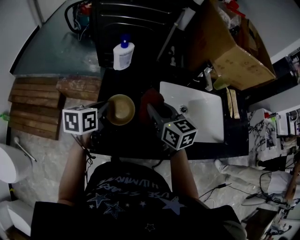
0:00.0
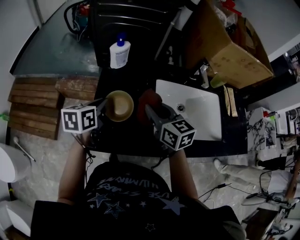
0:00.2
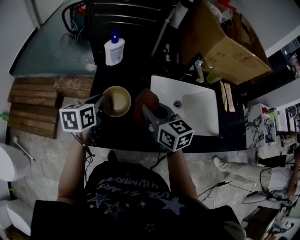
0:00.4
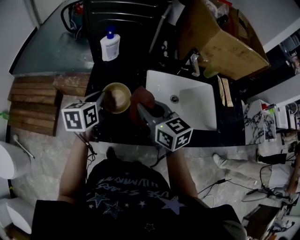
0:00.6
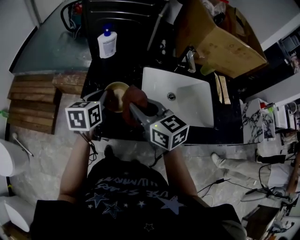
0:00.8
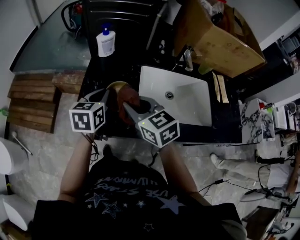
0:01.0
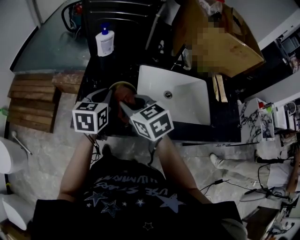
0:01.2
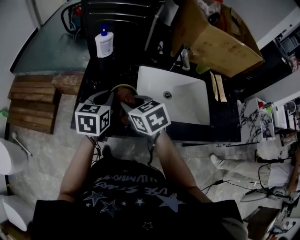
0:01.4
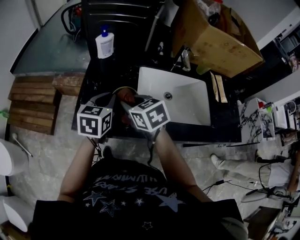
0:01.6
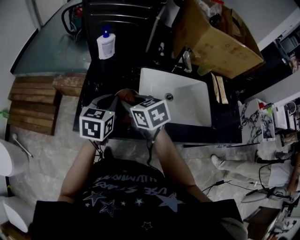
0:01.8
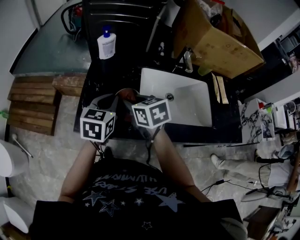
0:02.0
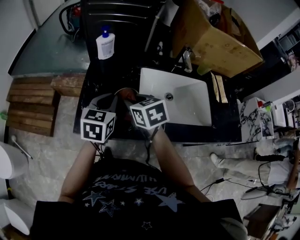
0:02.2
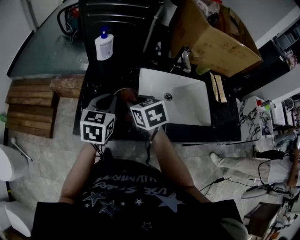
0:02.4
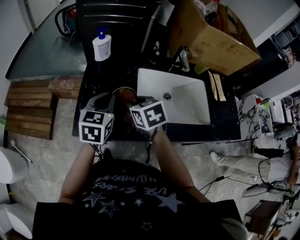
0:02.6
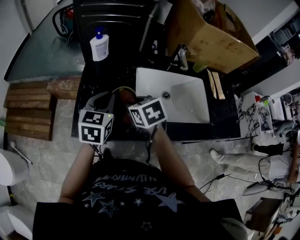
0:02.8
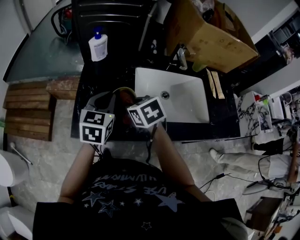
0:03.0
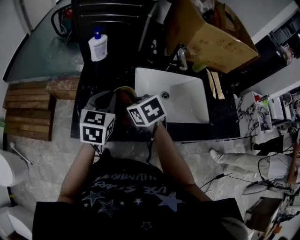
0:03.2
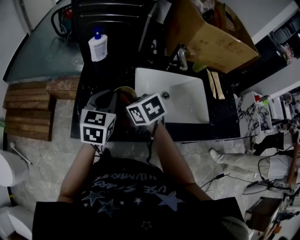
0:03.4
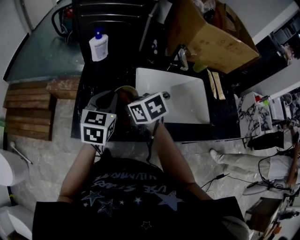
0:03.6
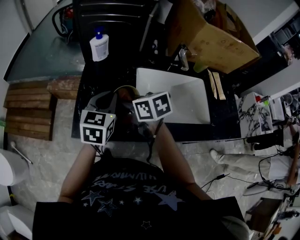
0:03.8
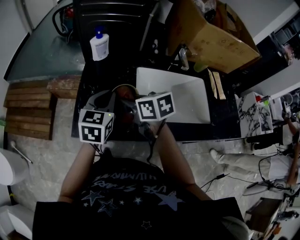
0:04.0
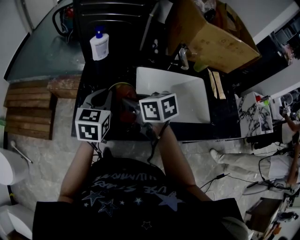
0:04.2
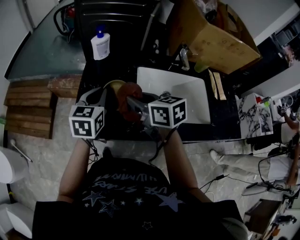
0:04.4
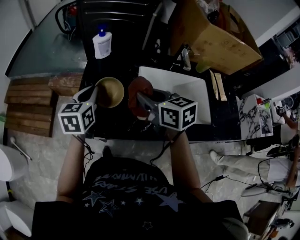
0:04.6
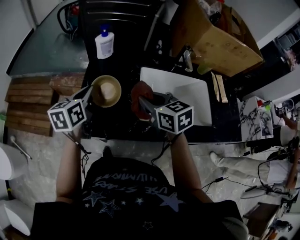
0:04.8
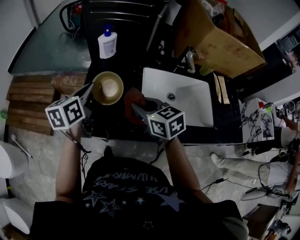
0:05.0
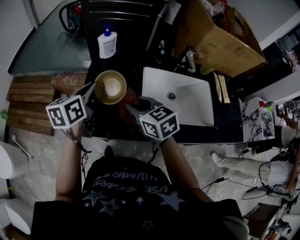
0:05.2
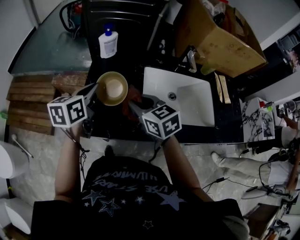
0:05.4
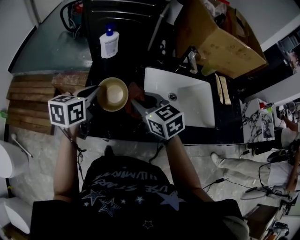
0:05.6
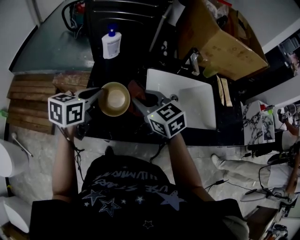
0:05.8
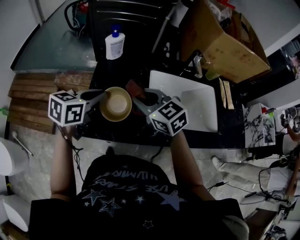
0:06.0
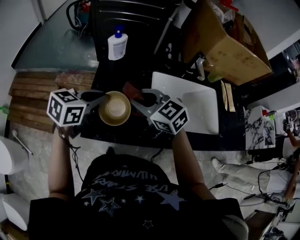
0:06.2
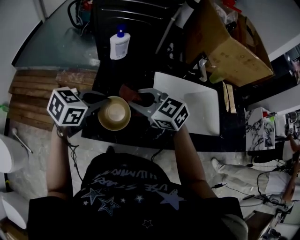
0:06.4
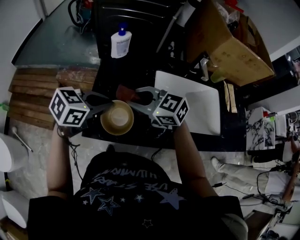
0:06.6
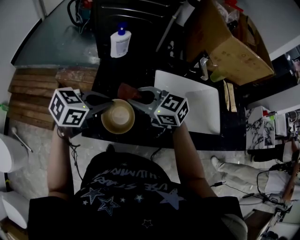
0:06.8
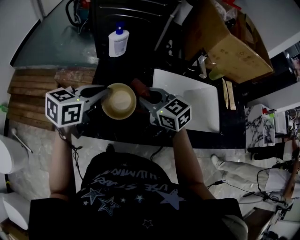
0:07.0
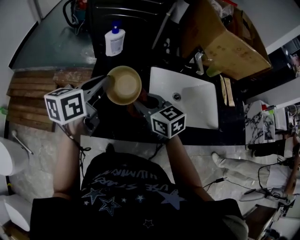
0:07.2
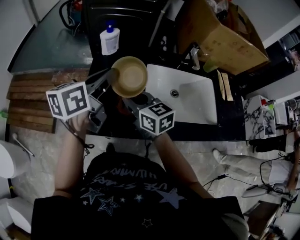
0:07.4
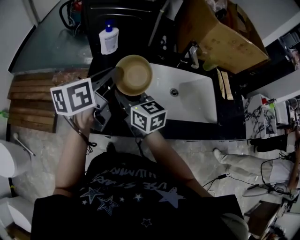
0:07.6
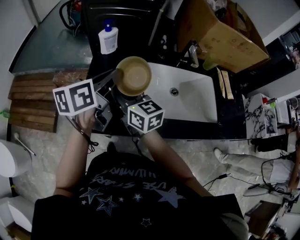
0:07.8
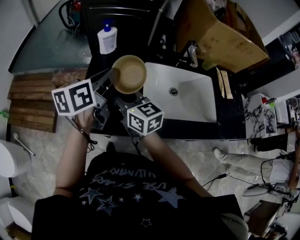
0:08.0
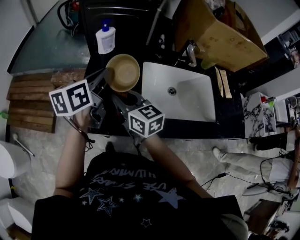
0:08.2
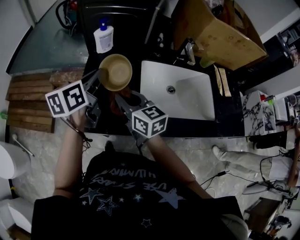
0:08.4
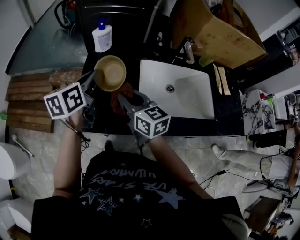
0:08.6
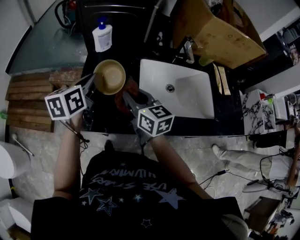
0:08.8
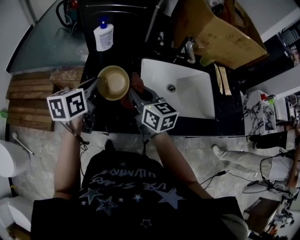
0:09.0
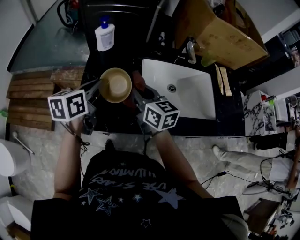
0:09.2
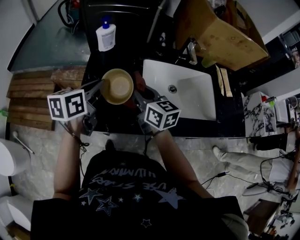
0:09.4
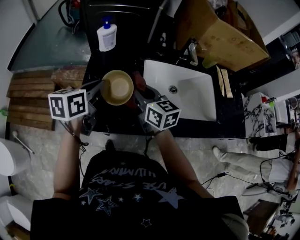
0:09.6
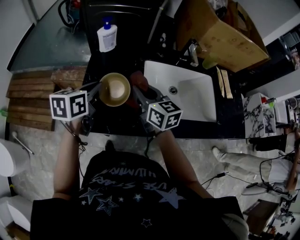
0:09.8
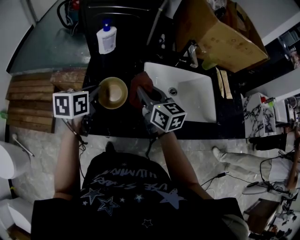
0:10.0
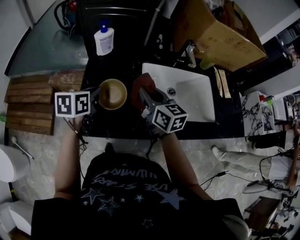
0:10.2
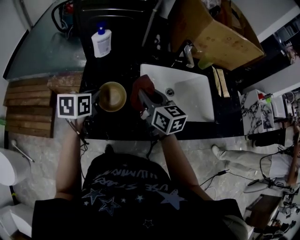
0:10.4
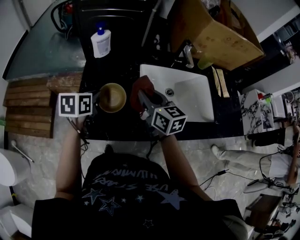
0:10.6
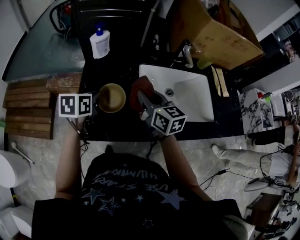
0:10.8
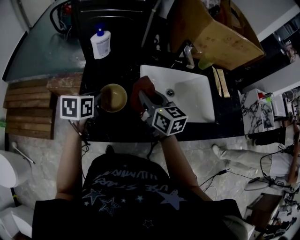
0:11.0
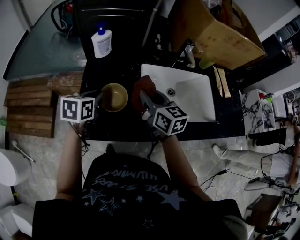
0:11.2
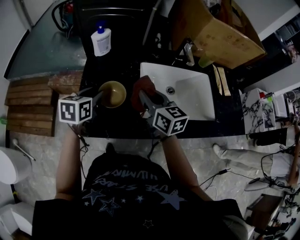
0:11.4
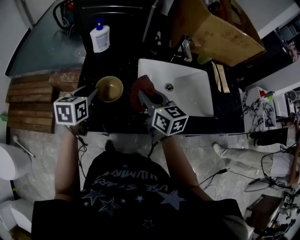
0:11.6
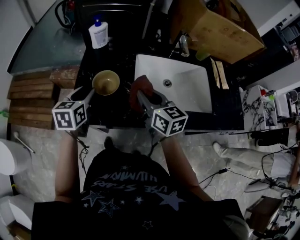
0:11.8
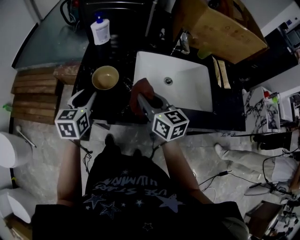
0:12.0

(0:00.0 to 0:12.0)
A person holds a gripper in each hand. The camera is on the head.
0:00.0 - 0:01.6: The right gripper moves backward, roughly 10 cm, and rotates about 20 degrees. Meanwhile the left gripper heads to the right and backward, covering some 15 cm, and changes its angle by roughly 20 degrees.
0:01.6 - 0:03.0: There are only small adjustments of the grippers.
0:03.0 - 0:04.4: The right gripper is displaced upward by approximately 10 cm, and turns by about 30 degrees.
0:04.4 - 0:06.0: The left gripper turns by roughly 30 degrees. Meanwhile the right gripper changes its angle by approximately 30 degrees.
0:06.0 - 0:07.6: The left gripper goes about 10 cm upward, and turns by approximately 30 degrees, while the right gripper turns by about 30 degrees.
0:07.6 - 0:09.0: The right gripper heads to the right, covering approximately 5 cm. Meanwhile the left gripper shifts approximately 10 cm downward.
0:09.0 - 0:10.4: The left gripper moves downward, some 5 cm.
0:10.4 - 0:12.0: Both grippers travel together backward, some 10 cm. The left gripper turns by roughly 20 degrees, and opens.

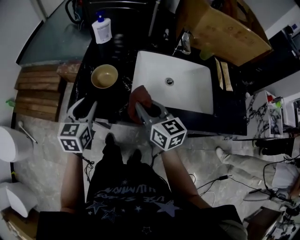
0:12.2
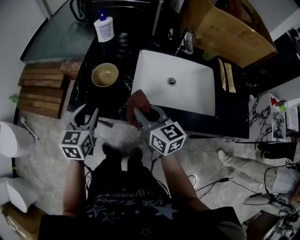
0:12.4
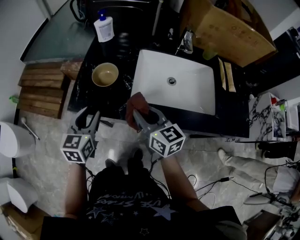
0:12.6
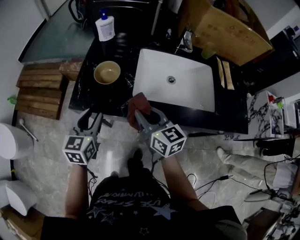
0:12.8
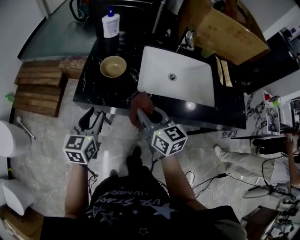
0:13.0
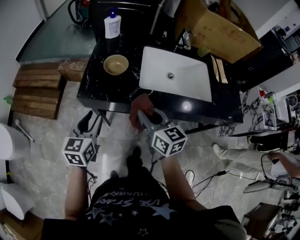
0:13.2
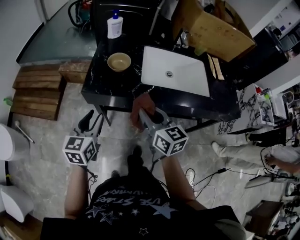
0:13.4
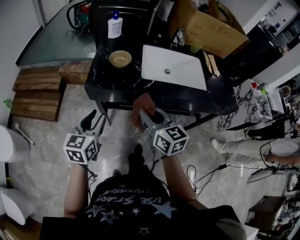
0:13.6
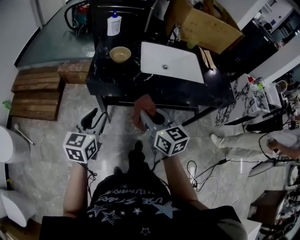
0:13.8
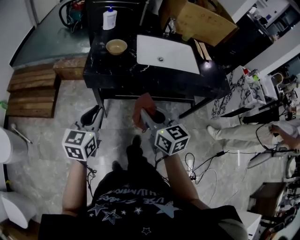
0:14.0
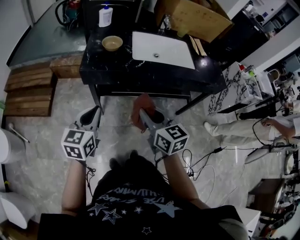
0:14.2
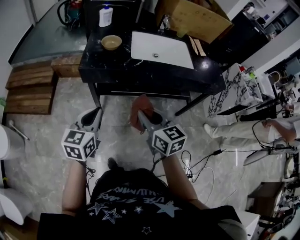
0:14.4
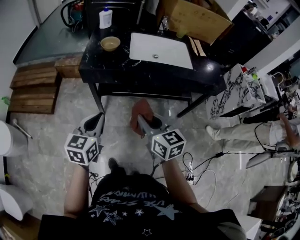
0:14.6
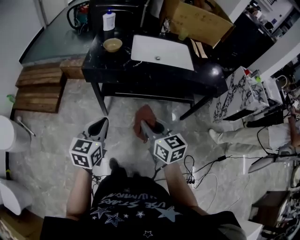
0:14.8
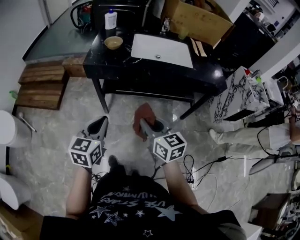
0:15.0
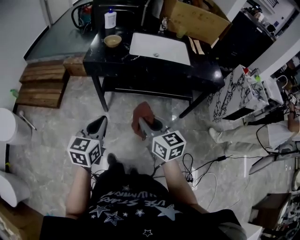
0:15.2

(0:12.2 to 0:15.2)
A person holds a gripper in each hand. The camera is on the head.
0:12.2 - 0:13.8: The right gripper moves backward and to the left, roughly 25 cm, while the left gripper travels backward by approximately 25 cm.
0:13.8 - 0:15.2: Both grippers travel together backward and to the right, roughly 20 cm. The left gripper closes up.

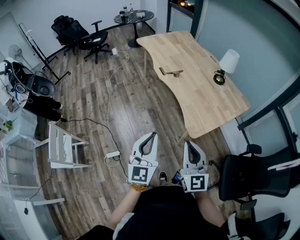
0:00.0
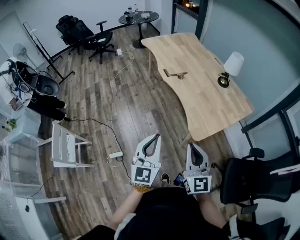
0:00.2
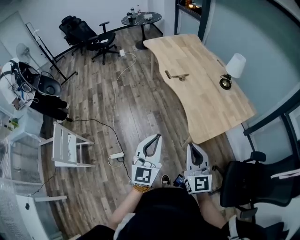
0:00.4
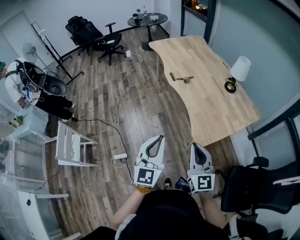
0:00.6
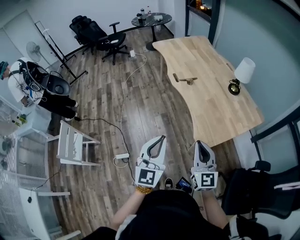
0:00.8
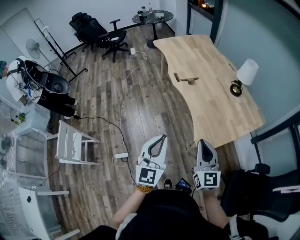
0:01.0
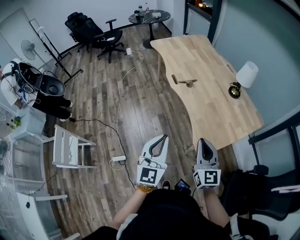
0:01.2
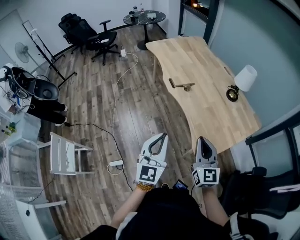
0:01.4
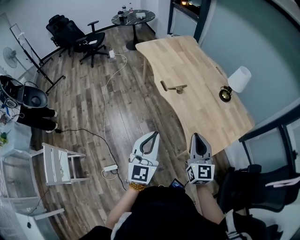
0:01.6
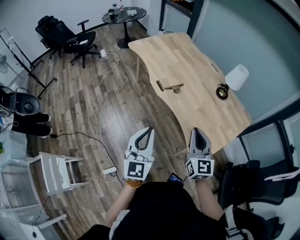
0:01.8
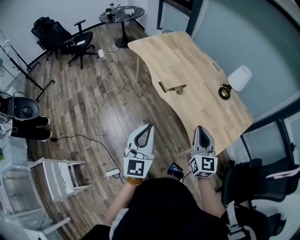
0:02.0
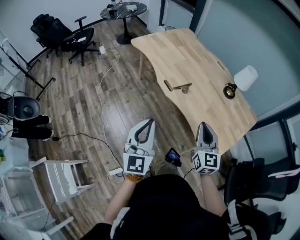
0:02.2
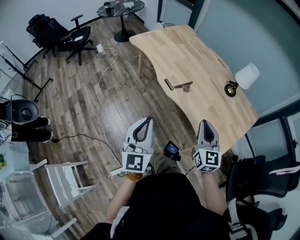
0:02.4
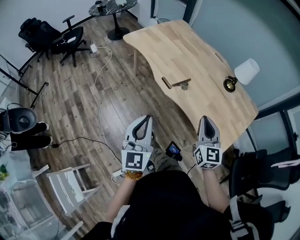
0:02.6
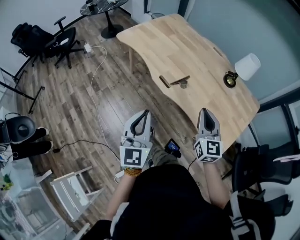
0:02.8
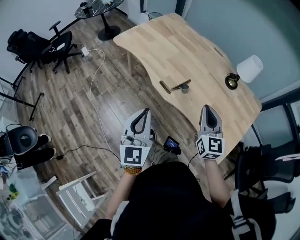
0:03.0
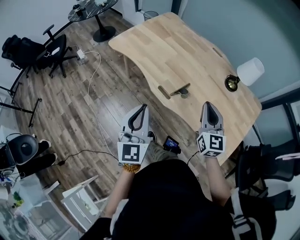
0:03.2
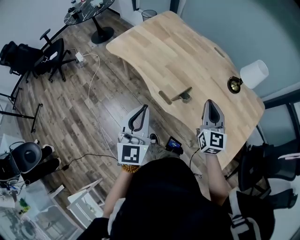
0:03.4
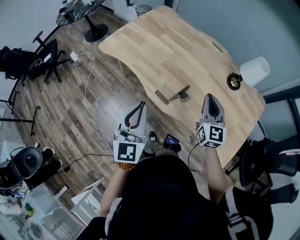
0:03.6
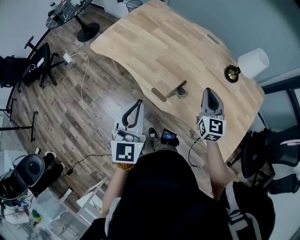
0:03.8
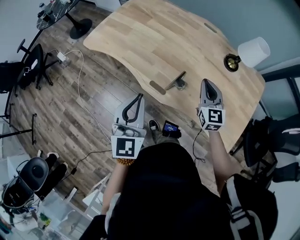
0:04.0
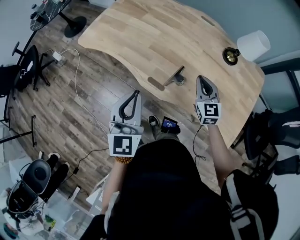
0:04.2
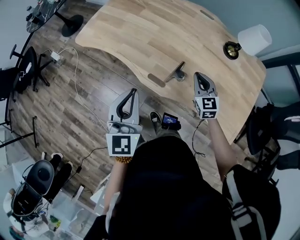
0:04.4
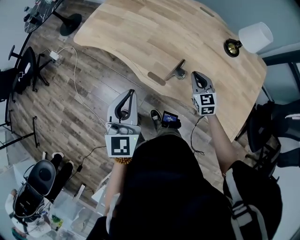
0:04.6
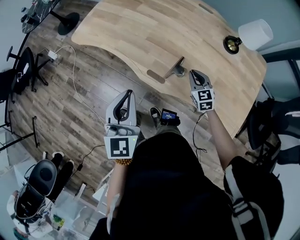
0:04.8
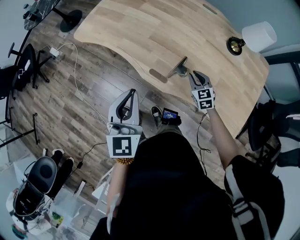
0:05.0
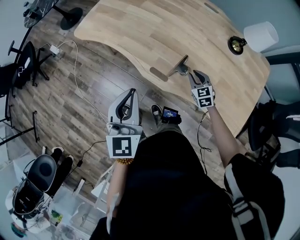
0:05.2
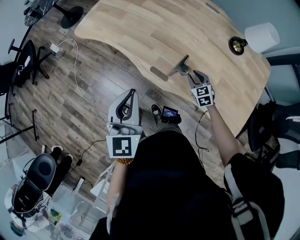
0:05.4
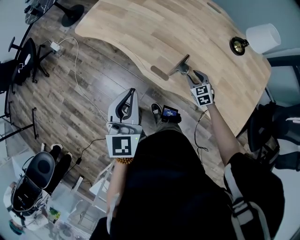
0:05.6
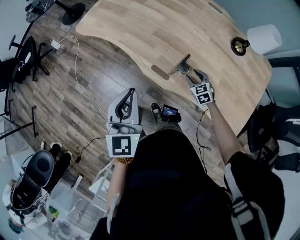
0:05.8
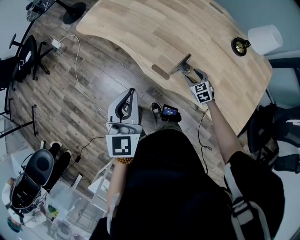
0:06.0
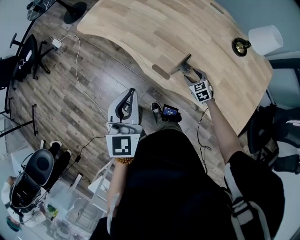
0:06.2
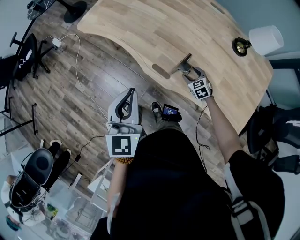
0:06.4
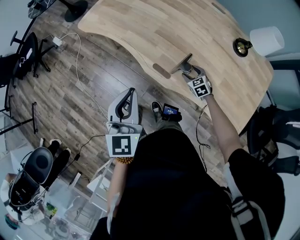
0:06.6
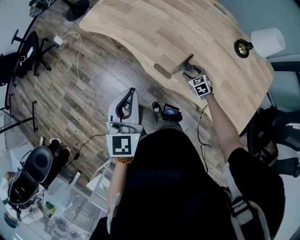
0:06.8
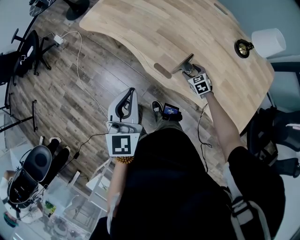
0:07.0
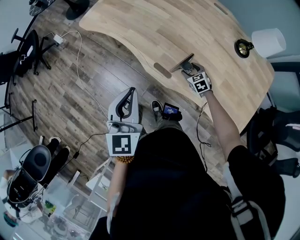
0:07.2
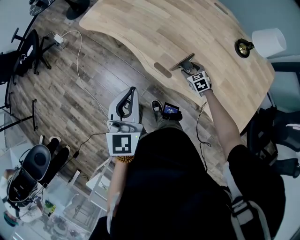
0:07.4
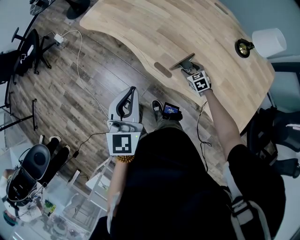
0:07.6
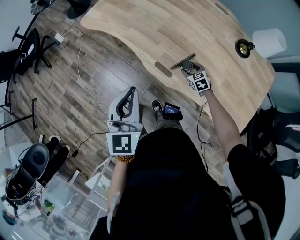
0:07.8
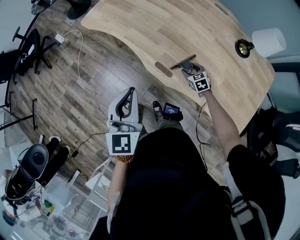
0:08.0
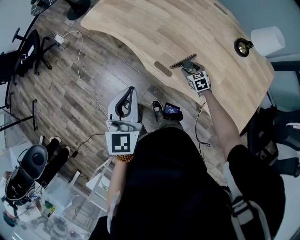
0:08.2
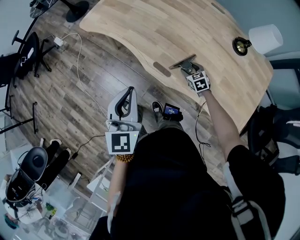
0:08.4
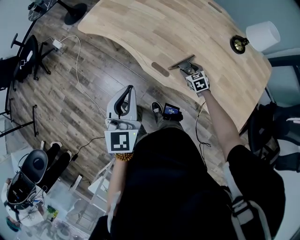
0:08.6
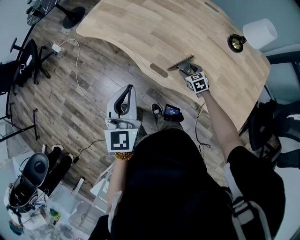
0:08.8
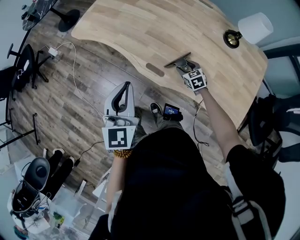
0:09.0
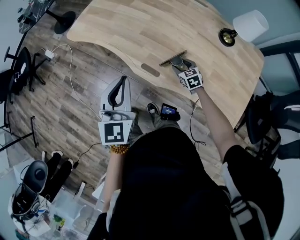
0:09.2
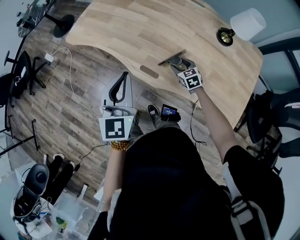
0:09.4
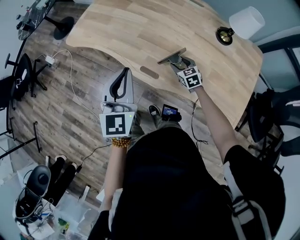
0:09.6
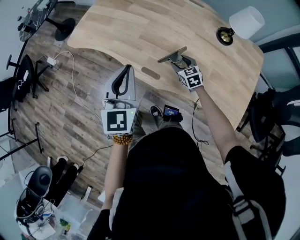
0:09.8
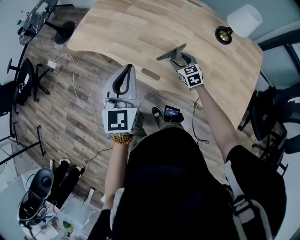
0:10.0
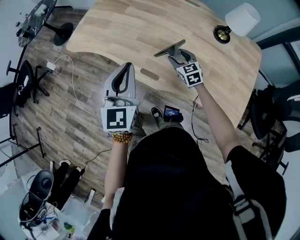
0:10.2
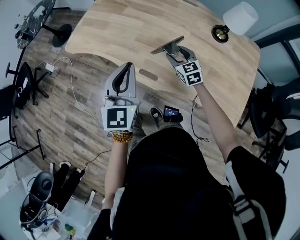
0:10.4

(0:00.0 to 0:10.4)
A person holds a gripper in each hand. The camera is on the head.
0:00.0 - 0:01.4: Both grippers move forward, some 20 cm.
0:01.4 - 0:03.0: Both grippers move forward and to the left, roughly 35 cm. The right gripper changes its angle by roughly 20 degrees.
0:03.0 - 0:04.4: The left gripper is displaced forward by some 25 cm; the right gripper shifts roughly 30 cm forward and downward.
0:04.4 - 0:06.0: The right gripper is displaced downward by approximately 20 cm, rotates roughly 30 degrees, and opens.
0:06.0 - 0:07.4: The right gripper changes place by roughly 5 cm.
0:07.4 - 0:09.0: There are only small adjustments of the grippers.
0:09.0 - 0:10.4: The left gripper travels forward and to the right by approximately 10 cm; the right gripper goes roughly 15 cm upward.
